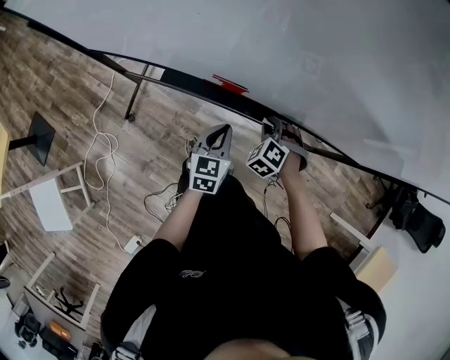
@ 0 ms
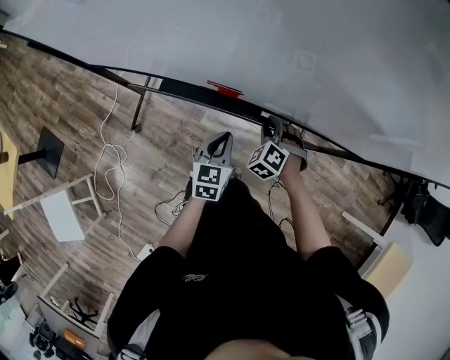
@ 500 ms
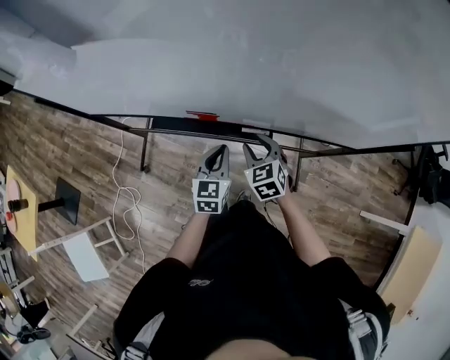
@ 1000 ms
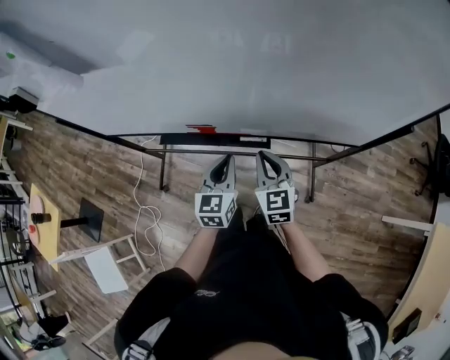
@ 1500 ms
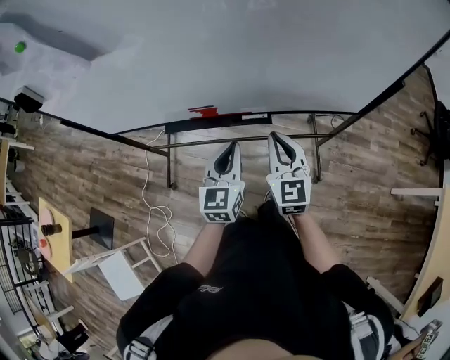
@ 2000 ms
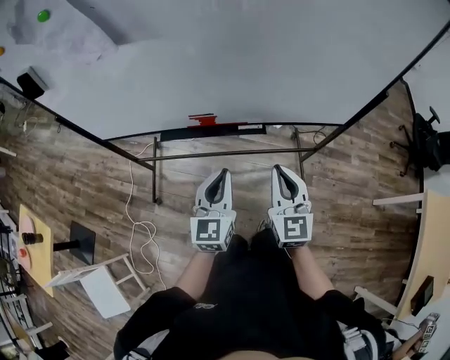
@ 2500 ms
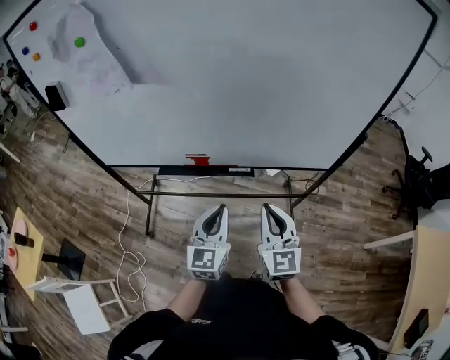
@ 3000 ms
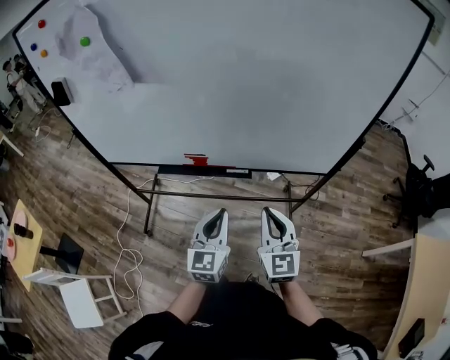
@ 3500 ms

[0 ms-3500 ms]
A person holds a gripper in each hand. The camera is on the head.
0 ms to 2000 ms: The right gripper travels upward and backward by approximately 30 cm, angles its fingers upward, by roughly 50 degrees, and opens, then closes again. Meanwhile the left gripper moves upward and to the right, roughly 20 cm, and changes its angle by some 20 degrees.
2000 ms to 3500 ms: The right gripper goes approximately 15 cm backward and upward. Meanwhile the left gripper is displaced backward by roughly 10 cm.

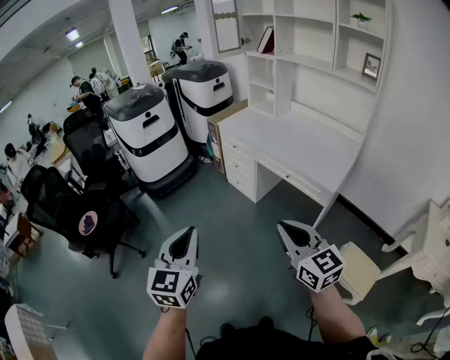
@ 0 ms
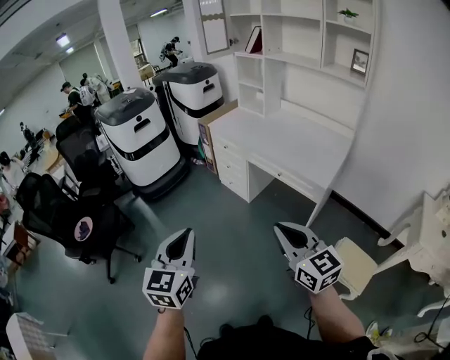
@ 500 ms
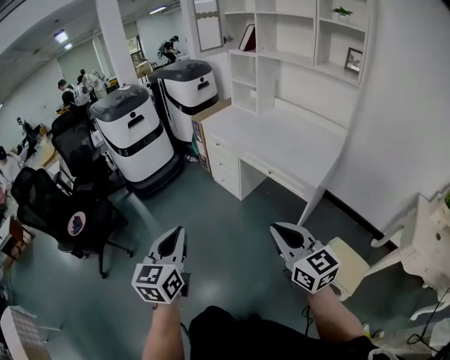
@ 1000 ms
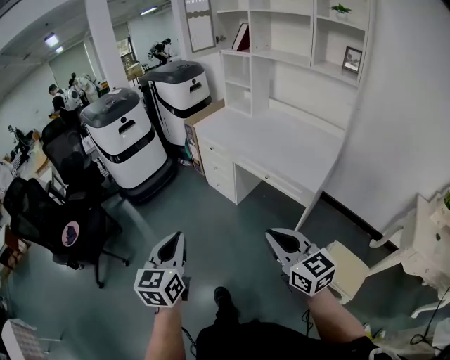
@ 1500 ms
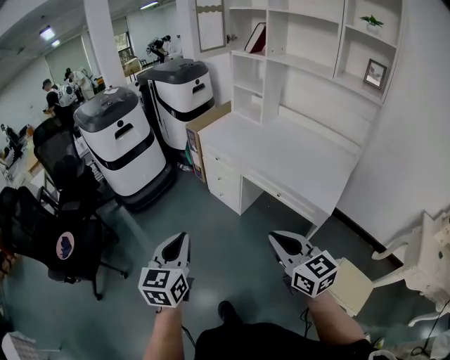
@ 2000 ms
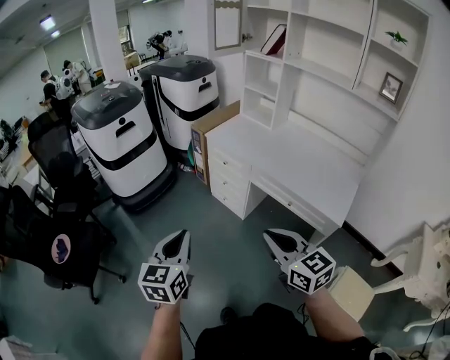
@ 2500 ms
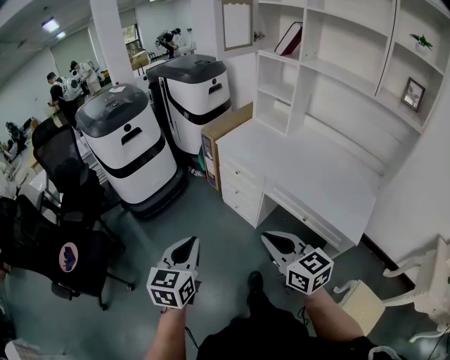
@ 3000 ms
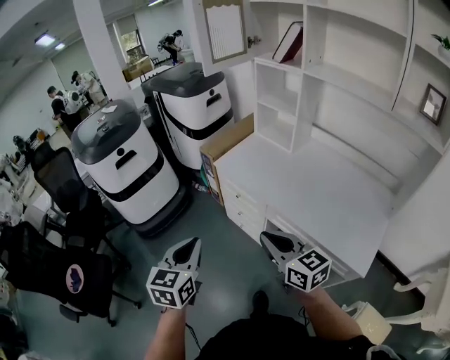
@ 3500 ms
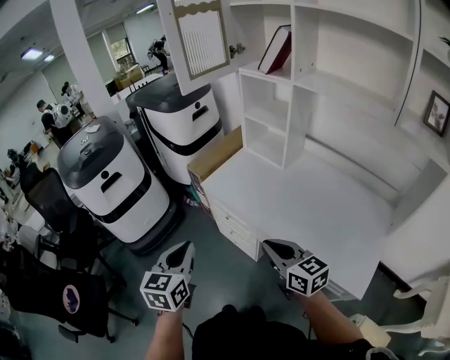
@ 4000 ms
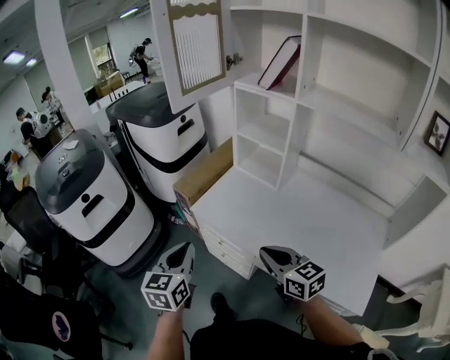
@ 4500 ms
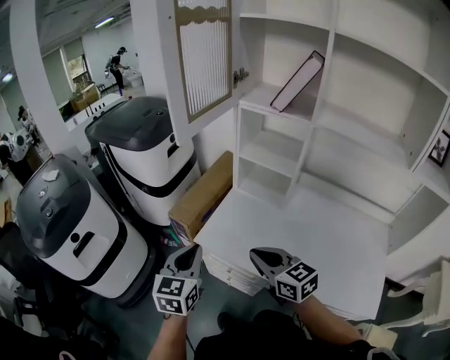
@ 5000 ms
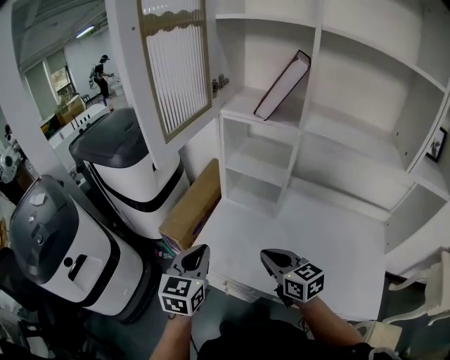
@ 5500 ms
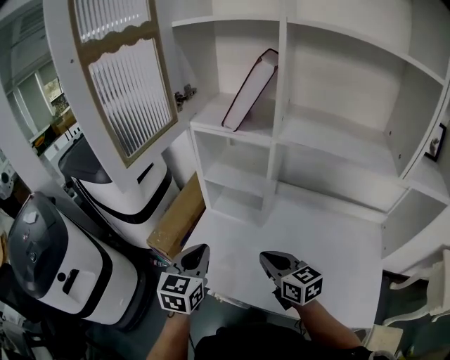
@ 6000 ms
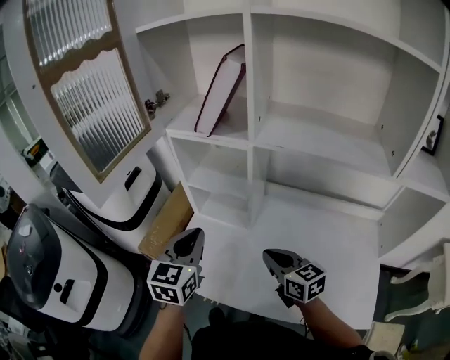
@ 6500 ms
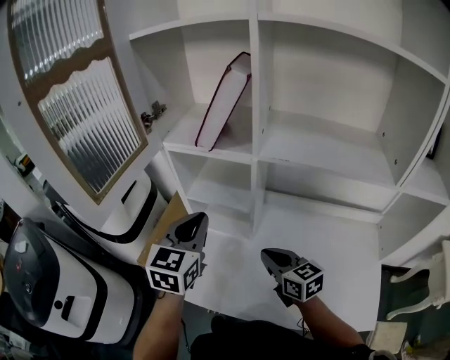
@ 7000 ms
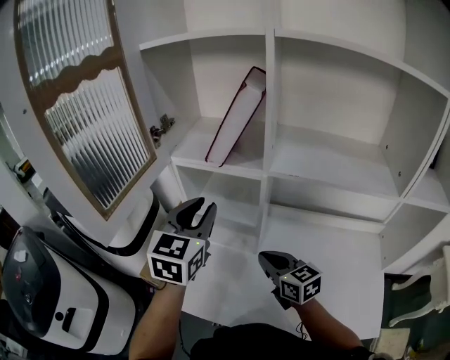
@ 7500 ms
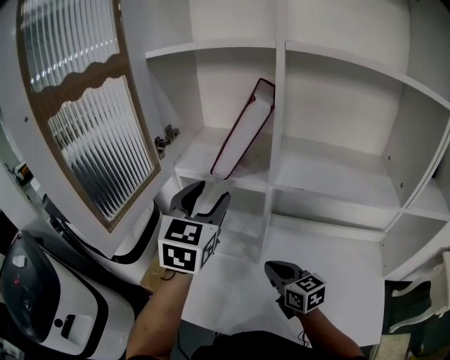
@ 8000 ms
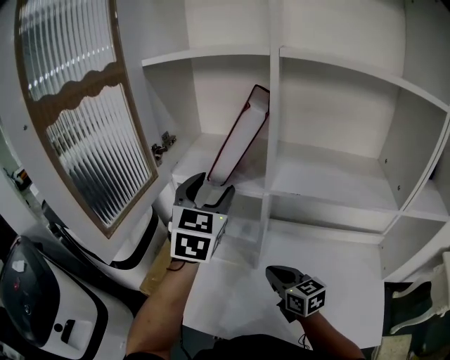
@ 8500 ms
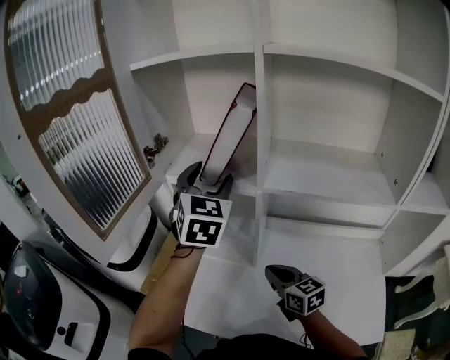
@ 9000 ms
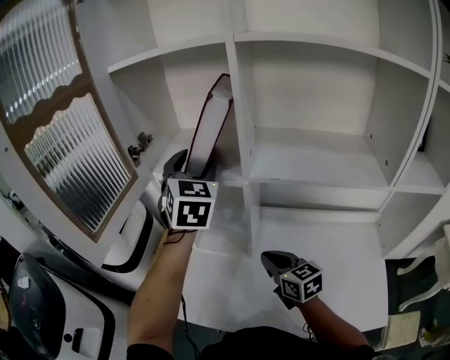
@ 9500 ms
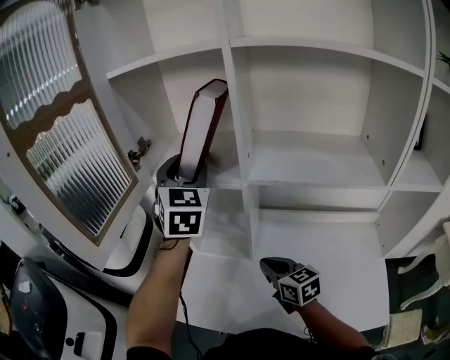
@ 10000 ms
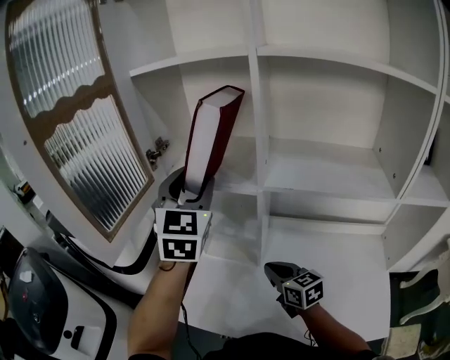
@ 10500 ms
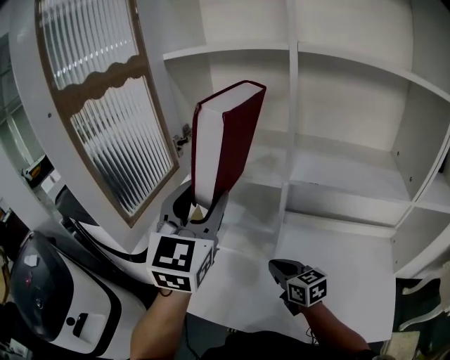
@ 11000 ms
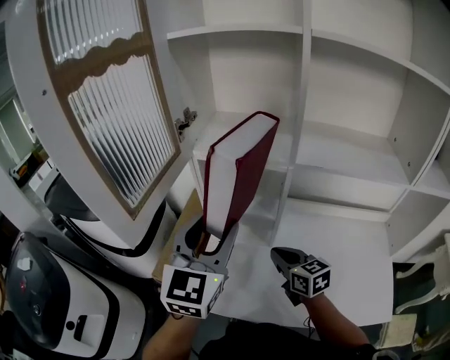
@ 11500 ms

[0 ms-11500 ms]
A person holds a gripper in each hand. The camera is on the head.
0 ms to 2000 ms: The two grippers go about 20 cm forward.
2000 ms to 4000 ms: The pair of grippers is taken forward, about 50 cm.
4000 ms to 6000 ms: The grippers both shift forward by about 35 cm. The left gripper rotates about 30 degrees. The right gripper rotates about 20 degrees.
6000 ms to 7500 ms: The left gripper travels forward, upward and to the right by approximately 25 cm. Meanwhile the right gripper heads forward, covering roughly 10 cm.
7500 ms to 9500 ms: The left gripper is displaced forward, upward and to the right by some 15 cm, changes its angle by roughly 20 degrees, and opens up.
9500 ms to 11500 ms: The left gripper is displaced backward and to the left by roughly 20 cm, and turns by some 20 degrees. The right gripper shifts some 5 cm to the left.

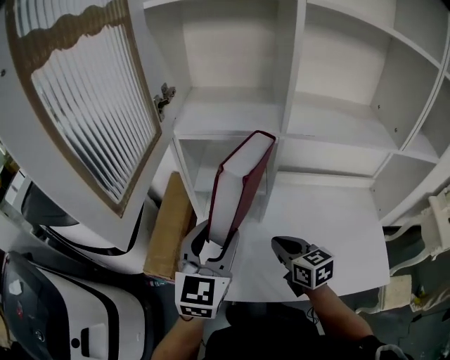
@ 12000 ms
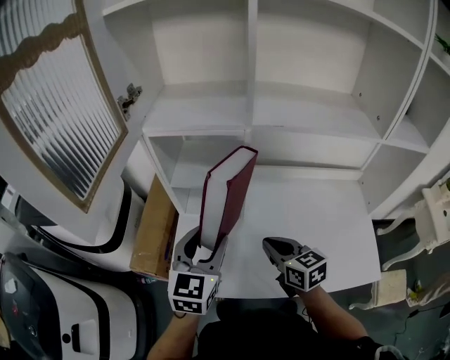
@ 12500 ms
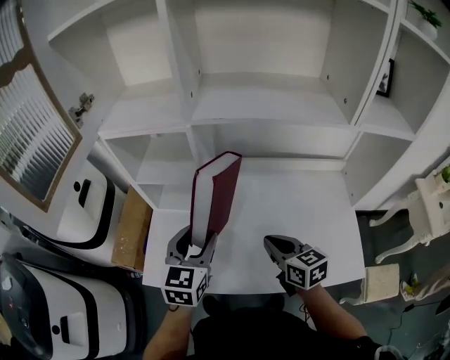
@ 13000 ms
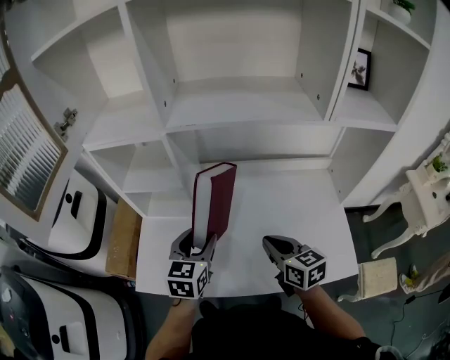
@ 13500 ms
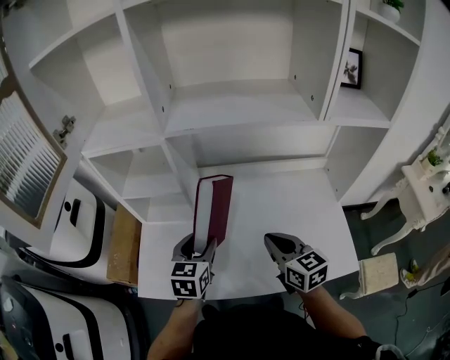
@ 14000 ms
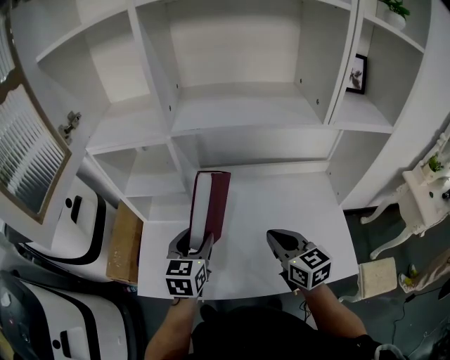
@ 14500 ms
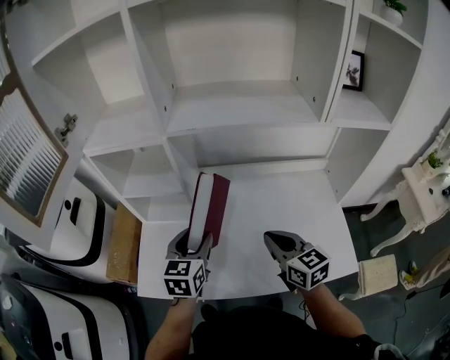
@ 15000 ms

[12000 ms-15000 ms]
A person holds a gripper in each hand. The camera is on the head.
12000 ms to 13500 ms: The left gripper moves to the right and downward, about 25 cm. Meanwhile the right gripper travels to the right by about 25 cm.
13500 ms to 15000 ms: The grippers move only a little.

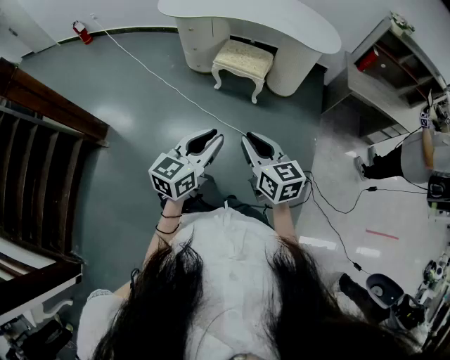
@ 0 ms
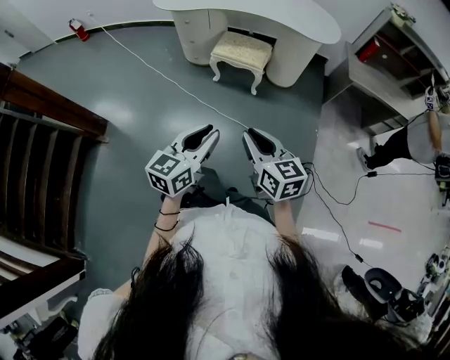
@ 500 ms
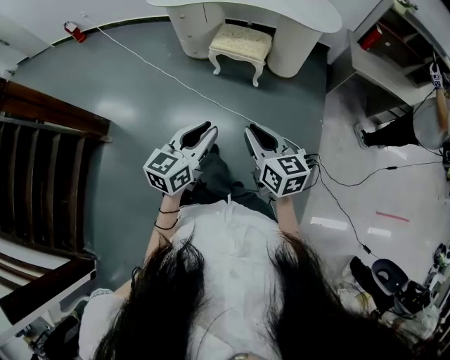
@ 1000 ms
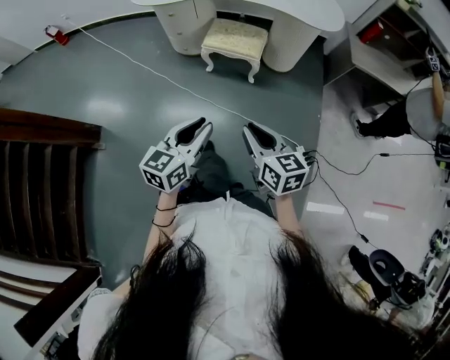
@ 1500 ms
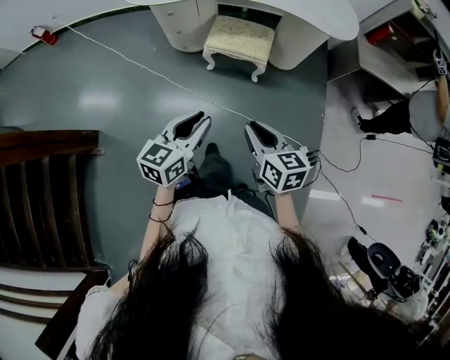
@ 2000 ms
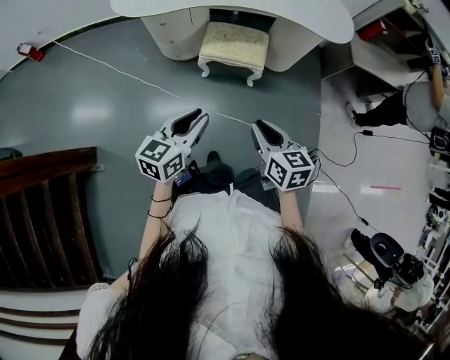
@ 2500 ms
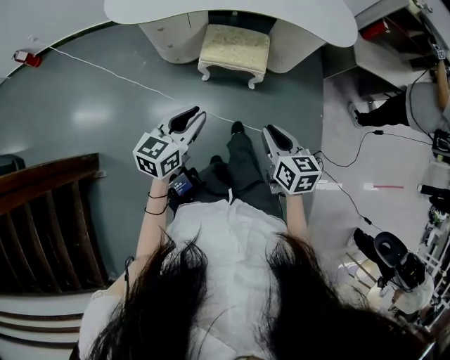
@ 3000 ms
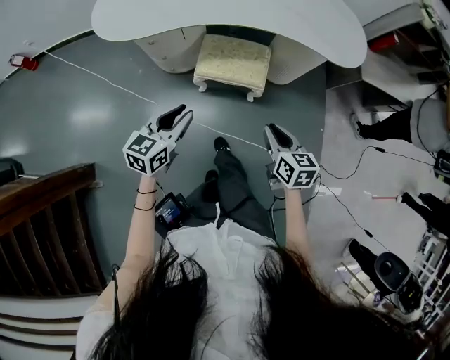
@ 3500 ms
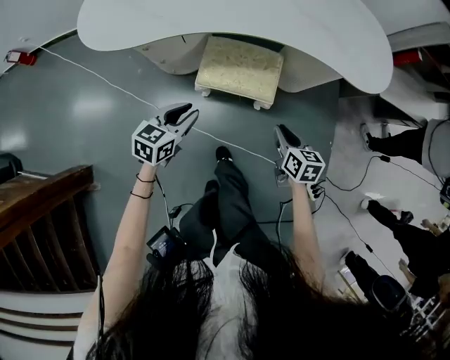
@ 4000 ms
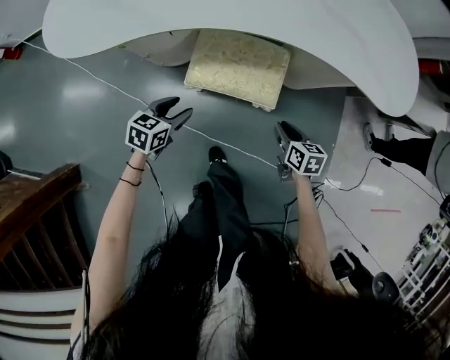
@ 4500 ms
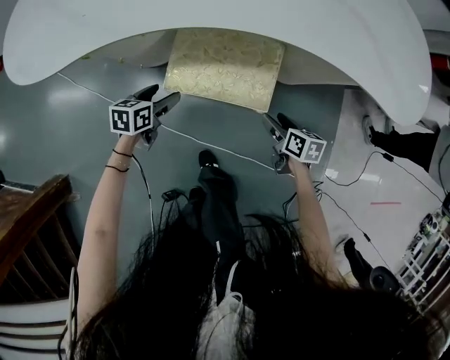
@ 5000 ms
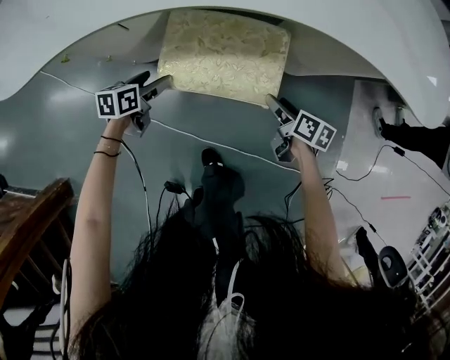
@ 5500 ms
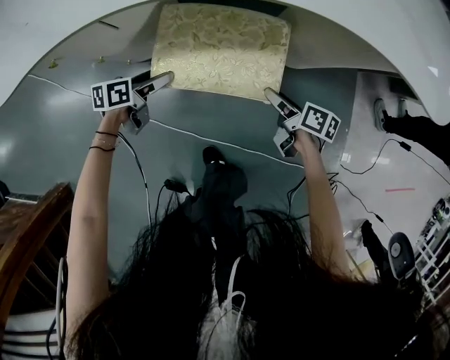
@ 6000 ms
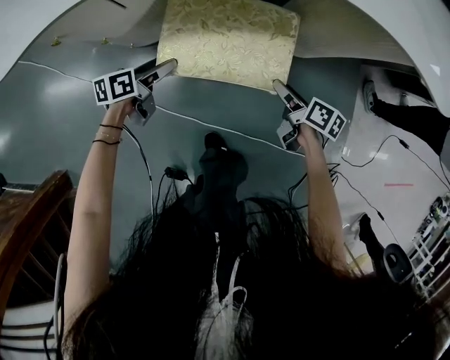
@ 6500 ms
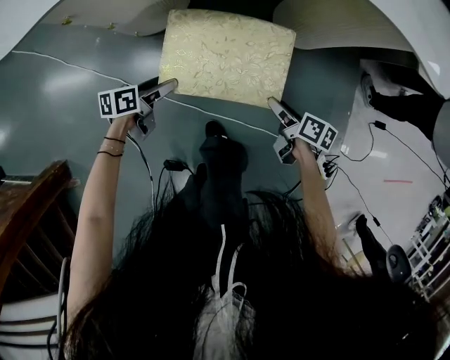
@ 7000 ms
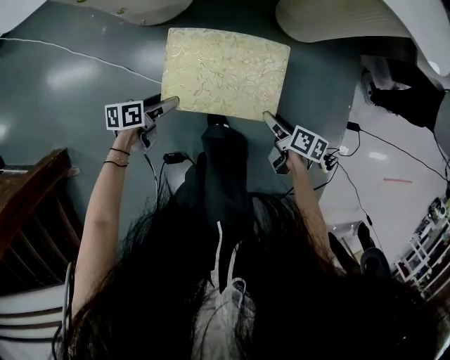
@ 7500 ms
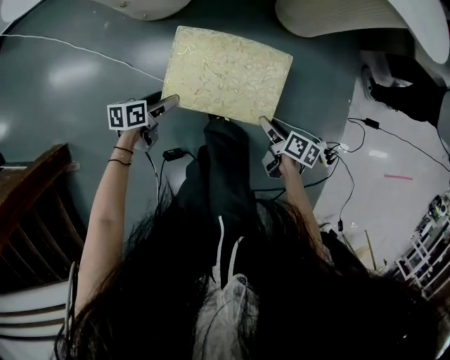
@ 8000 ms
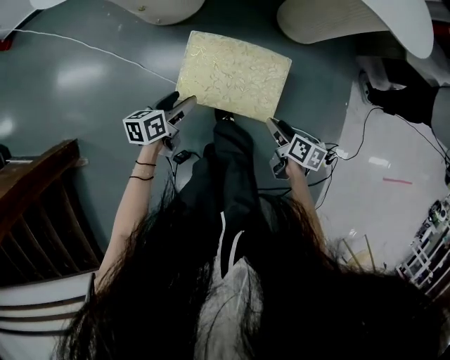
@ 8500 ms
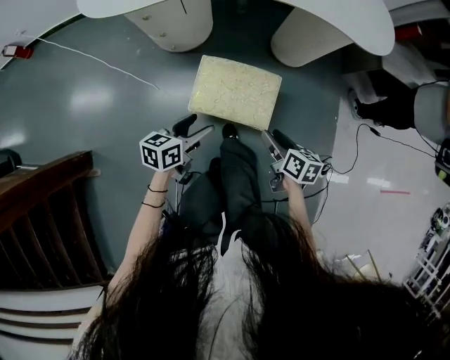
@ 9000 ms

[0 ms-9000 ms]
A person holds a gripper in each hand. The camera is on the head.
0 ms to 2000 ms: The right gripper goes some 20 cm forward and downward; the left gripper is displaced forward and to the left by about 25 cm.
2000 ms to 4500 ms: The grippers both shift forward and downward by about 50 cm. The left gripper changes its angle by roughly 30 degrees; the right gripper rotates some 20 degrees.
4500 ms to 7000 ms: The two grippers go roughly 20 cm downward and forward. The left gripper turns by about 30 degrees, while the right gripper turns by about 30 degrees, and opens up.
7000 ms to 9000 ms: Both grippers travel together upward, about 25 cm.
